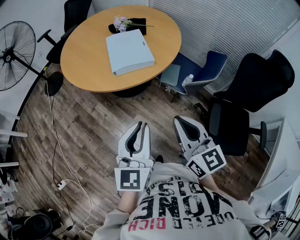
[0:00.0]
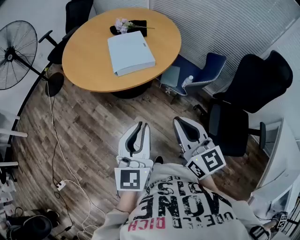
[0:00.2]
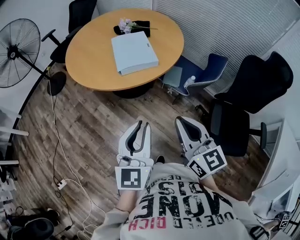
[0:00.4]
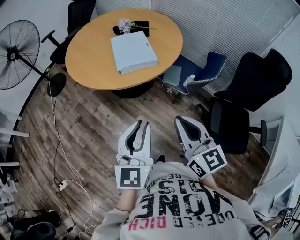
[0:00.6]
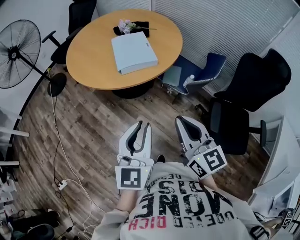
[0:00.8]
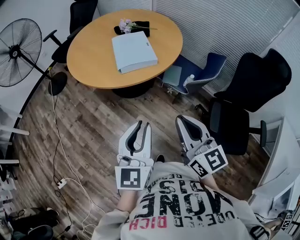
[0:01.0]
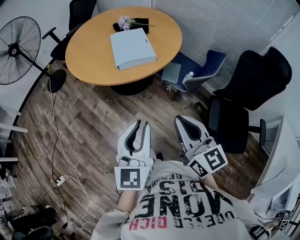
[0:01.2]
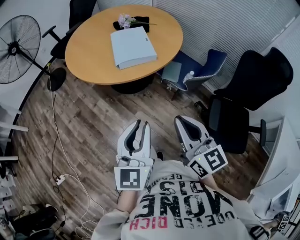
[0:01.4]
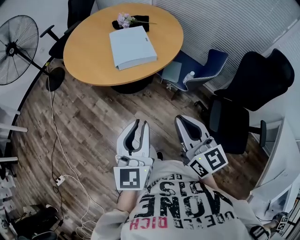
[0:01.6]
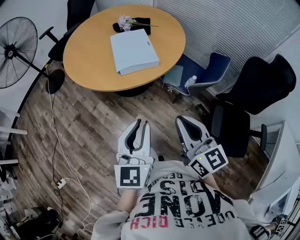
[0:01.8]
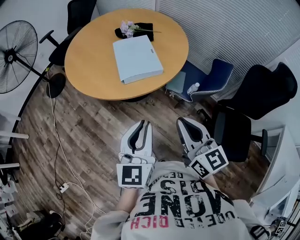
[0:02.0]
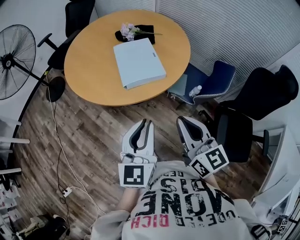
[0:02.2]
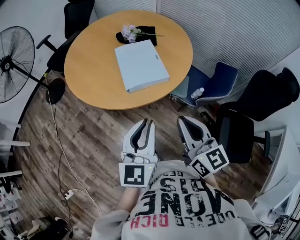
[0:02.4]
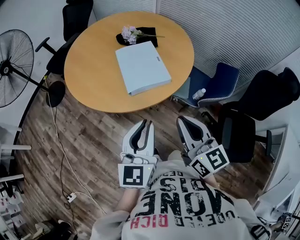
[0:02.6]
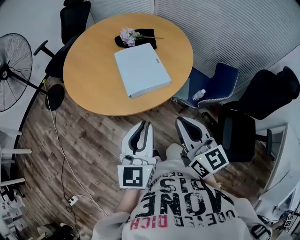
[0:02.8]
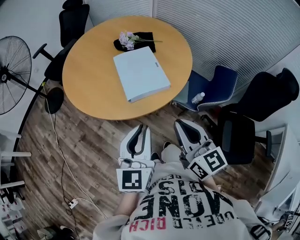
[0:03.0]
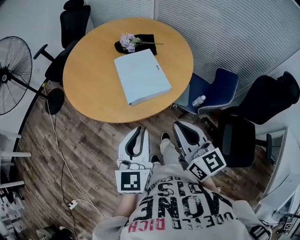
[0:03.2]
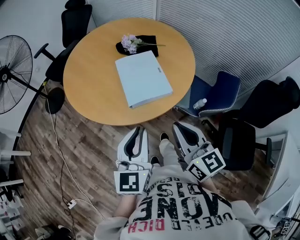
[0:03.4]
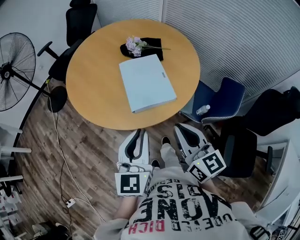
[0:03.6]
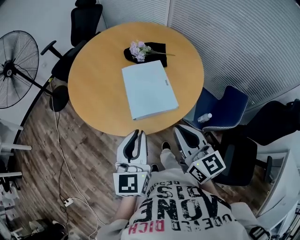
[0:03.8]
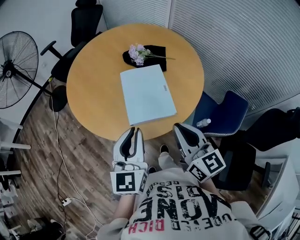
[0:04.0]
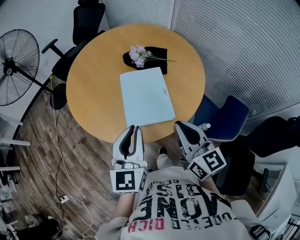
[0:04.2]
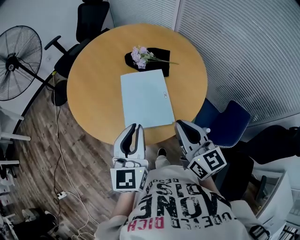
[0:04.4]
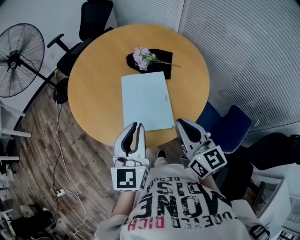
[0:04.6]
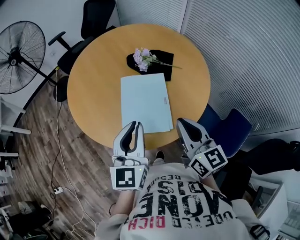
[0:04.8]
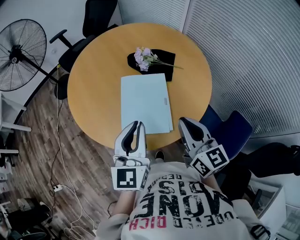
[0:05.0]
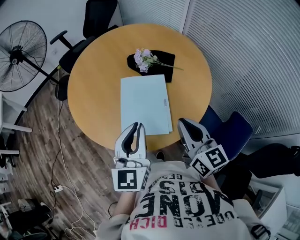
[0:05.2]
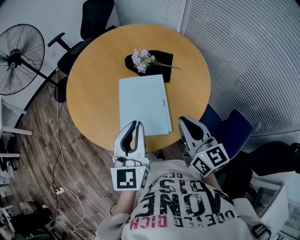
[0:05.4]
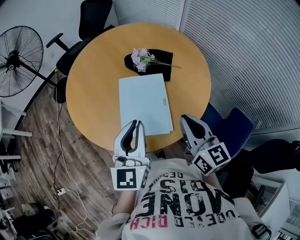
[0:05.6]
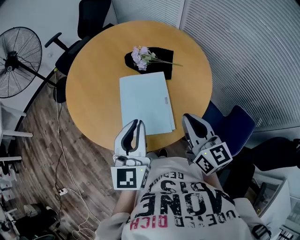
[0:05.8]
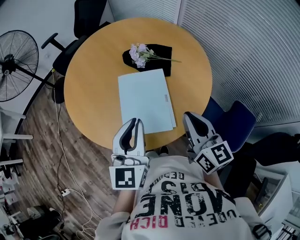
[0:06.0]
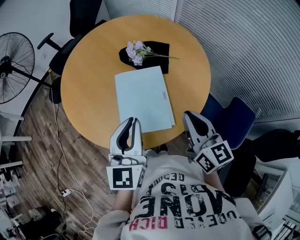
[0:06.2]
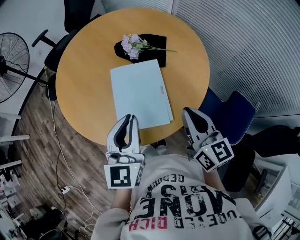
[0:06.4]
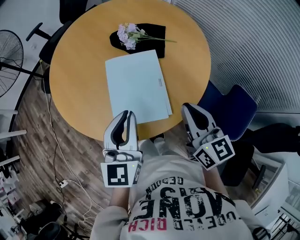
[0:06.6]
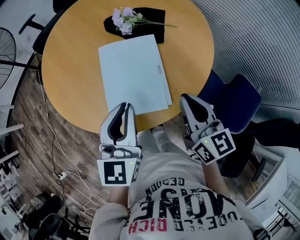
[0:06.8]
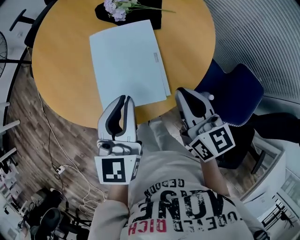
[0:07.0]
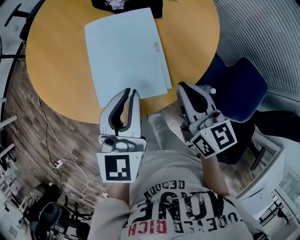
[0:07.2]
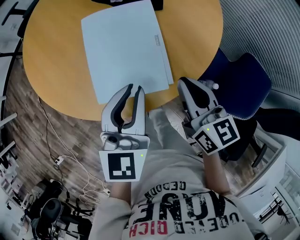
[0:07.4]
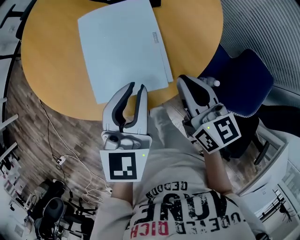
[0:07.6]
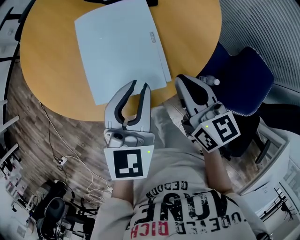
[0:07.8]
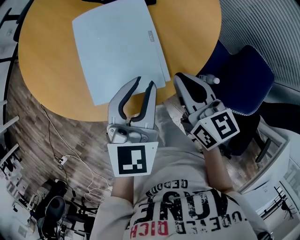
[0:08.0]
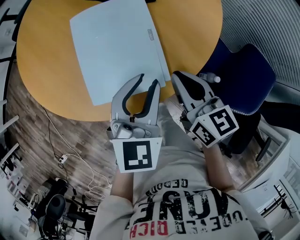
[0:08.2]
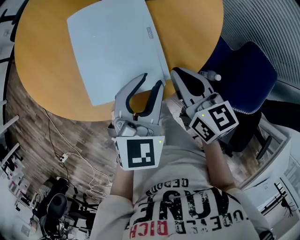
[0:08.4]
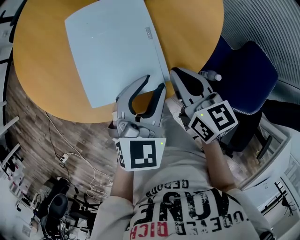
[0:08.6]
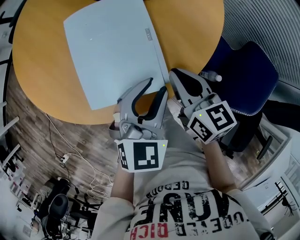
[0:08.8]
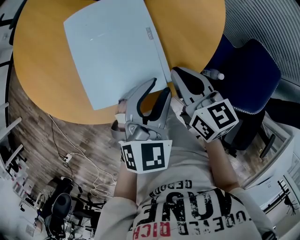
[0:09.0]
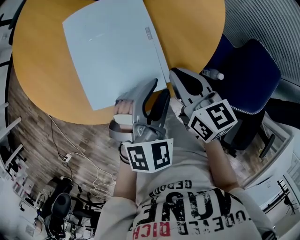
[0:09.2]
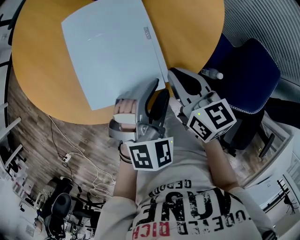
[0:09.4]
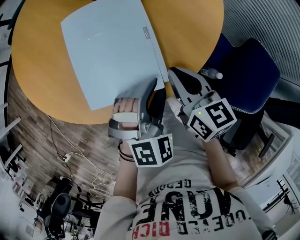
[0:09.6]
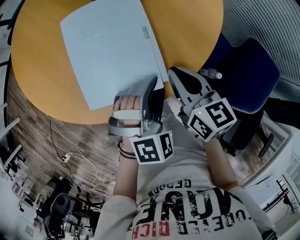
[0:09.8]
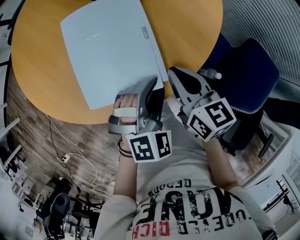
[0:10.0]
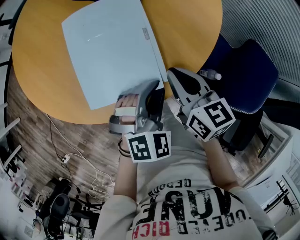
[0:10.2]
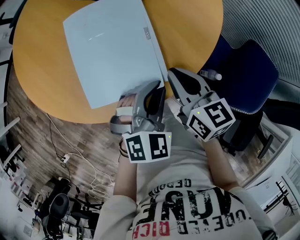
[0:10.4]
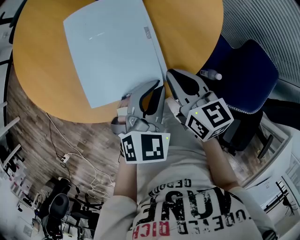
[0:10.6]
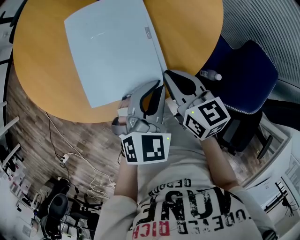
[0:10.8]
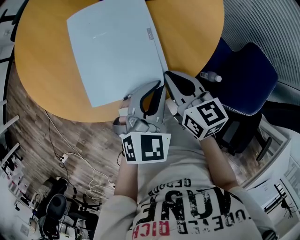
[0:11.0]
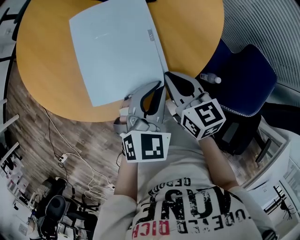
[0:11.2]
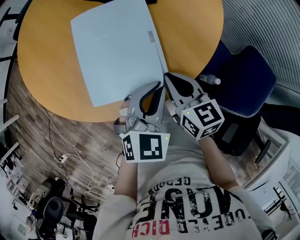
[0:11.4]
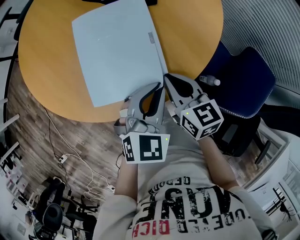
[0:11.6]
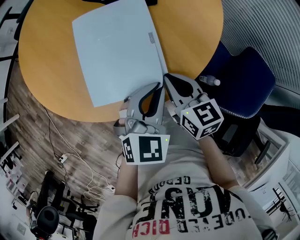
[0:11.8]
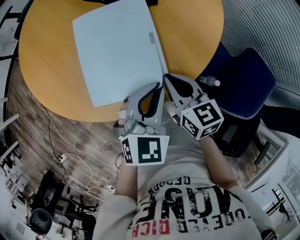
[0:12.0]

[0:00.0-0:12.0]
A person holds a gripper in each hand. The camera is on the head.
0:00.0 to 0:01.6: The grippers move only a little.
0:01.6 to 0:03.0: The left gripper travels forward by approximately 20 cm. Meanwhile the right gripper shifts approximately 20 cm forward and to the left.
0:03.0 to 0:04.4: The grippers both shift forward by some 20 cm.
0:04.4 to 0:06.0: The two grippers go some 5 cm forward.
0:06.0 to 0:07.6: The left gripper goes roughly 15 cm downward and to the right; the right gripper heads downward, covering roughly 15 cm.
0:07.6 to 0:09.0: The left gripper shifts about 10 cm to the right and downward, changes its angle by roughly 30 degrees, and opens up; the right gripper shifts approximately 5 cm downward.
0:09.0 to 0:10.4: The left gripper closes.
0:10.4 to 0:12.0: The grippers move only a little.

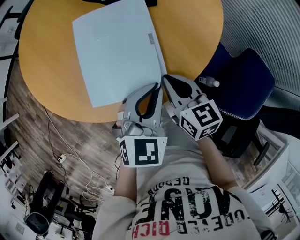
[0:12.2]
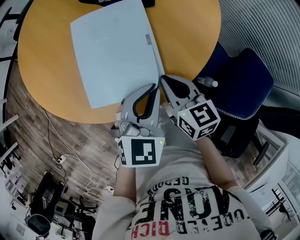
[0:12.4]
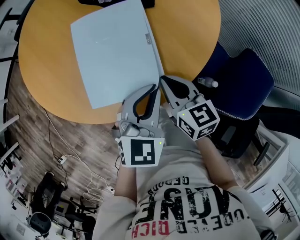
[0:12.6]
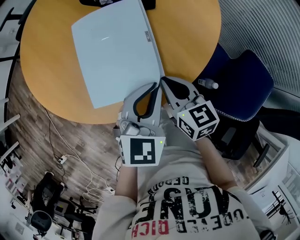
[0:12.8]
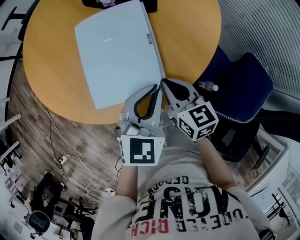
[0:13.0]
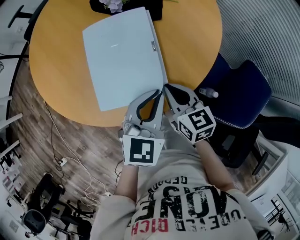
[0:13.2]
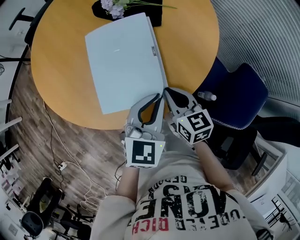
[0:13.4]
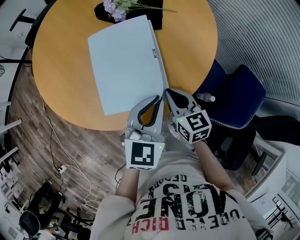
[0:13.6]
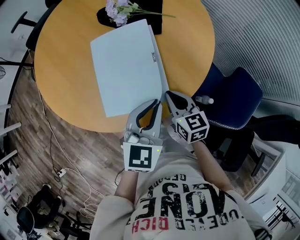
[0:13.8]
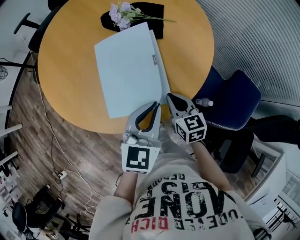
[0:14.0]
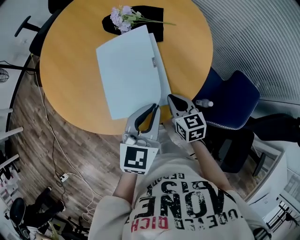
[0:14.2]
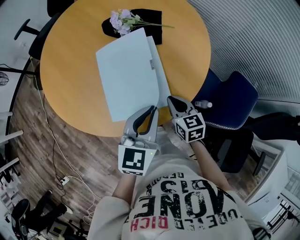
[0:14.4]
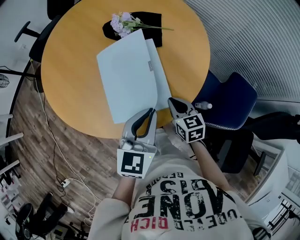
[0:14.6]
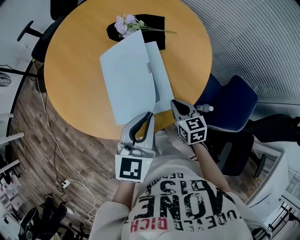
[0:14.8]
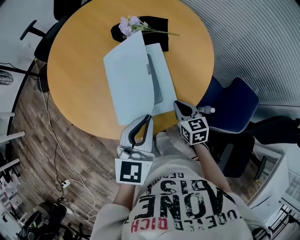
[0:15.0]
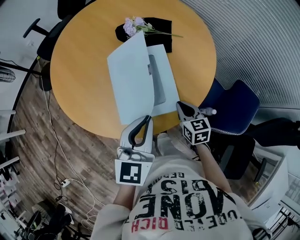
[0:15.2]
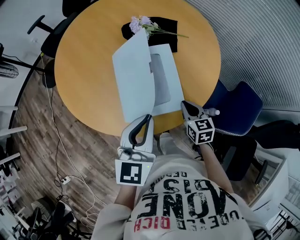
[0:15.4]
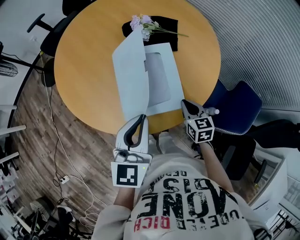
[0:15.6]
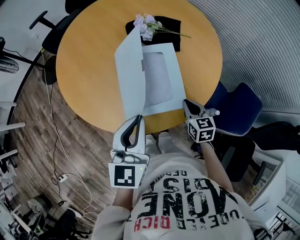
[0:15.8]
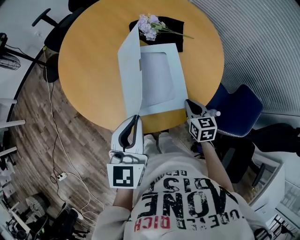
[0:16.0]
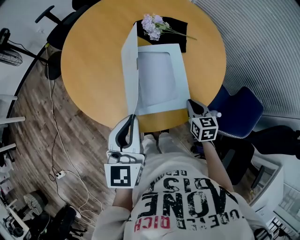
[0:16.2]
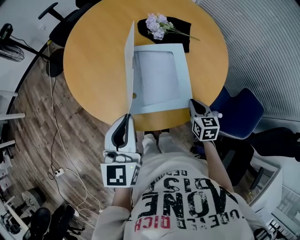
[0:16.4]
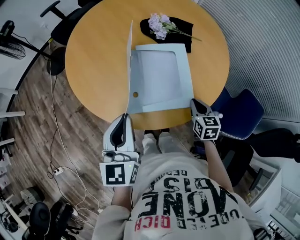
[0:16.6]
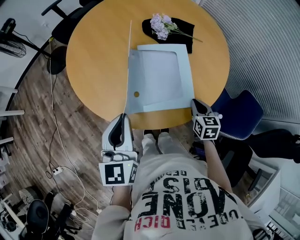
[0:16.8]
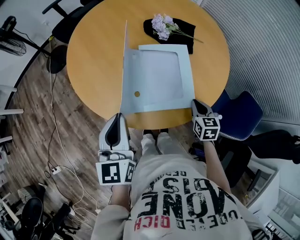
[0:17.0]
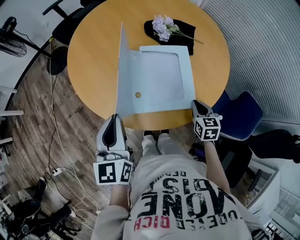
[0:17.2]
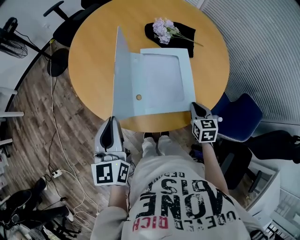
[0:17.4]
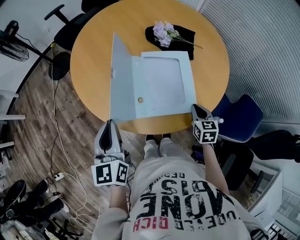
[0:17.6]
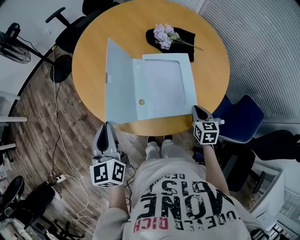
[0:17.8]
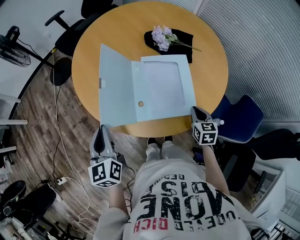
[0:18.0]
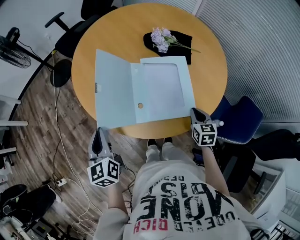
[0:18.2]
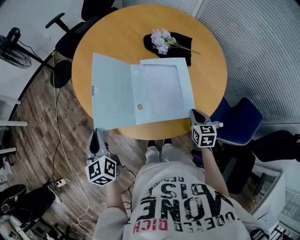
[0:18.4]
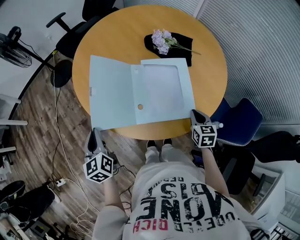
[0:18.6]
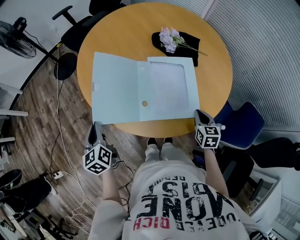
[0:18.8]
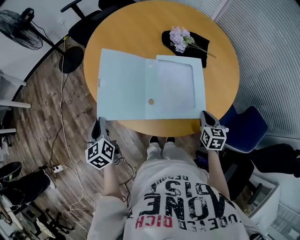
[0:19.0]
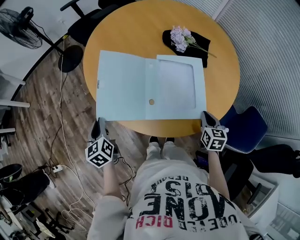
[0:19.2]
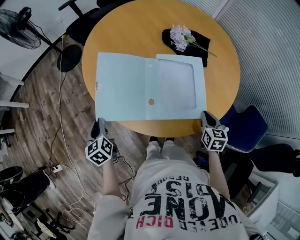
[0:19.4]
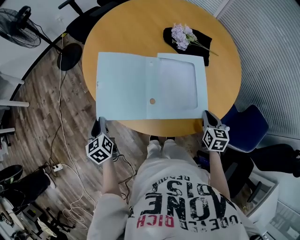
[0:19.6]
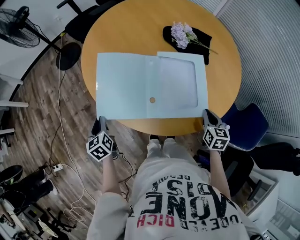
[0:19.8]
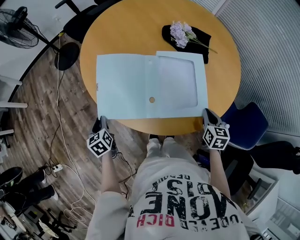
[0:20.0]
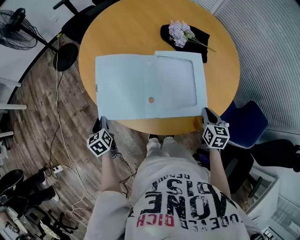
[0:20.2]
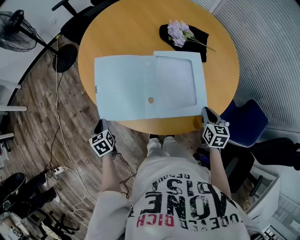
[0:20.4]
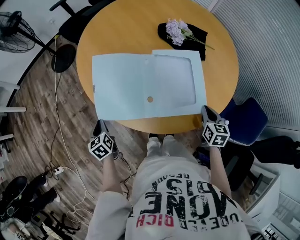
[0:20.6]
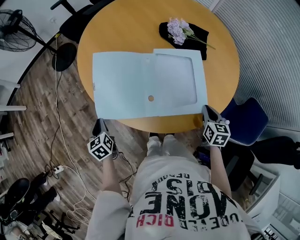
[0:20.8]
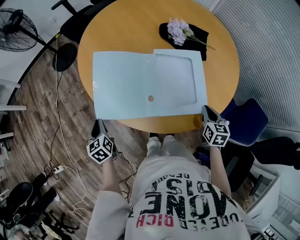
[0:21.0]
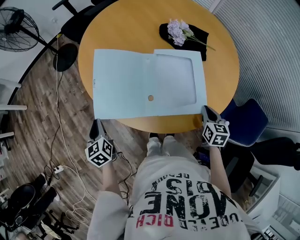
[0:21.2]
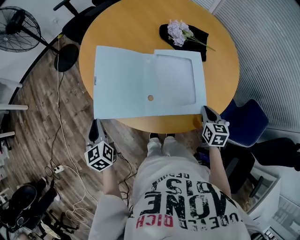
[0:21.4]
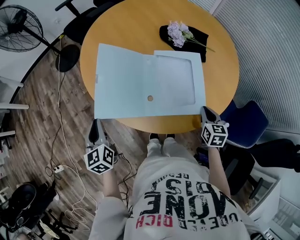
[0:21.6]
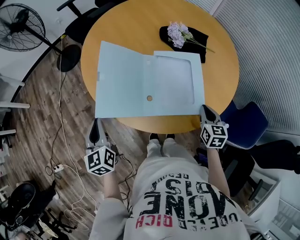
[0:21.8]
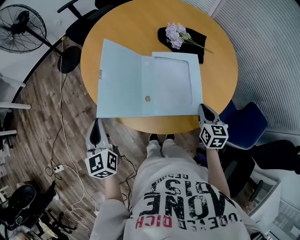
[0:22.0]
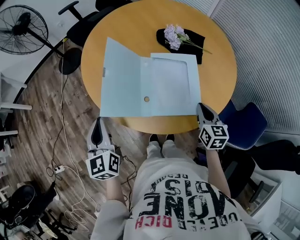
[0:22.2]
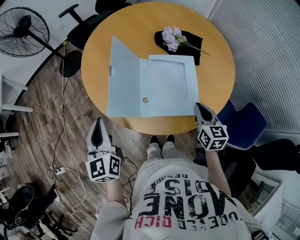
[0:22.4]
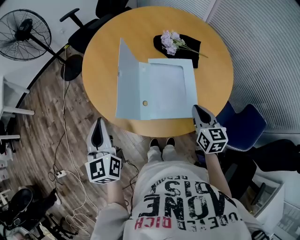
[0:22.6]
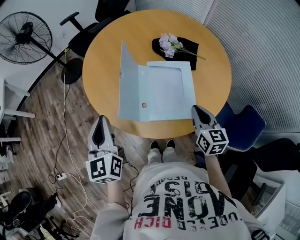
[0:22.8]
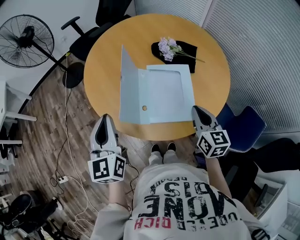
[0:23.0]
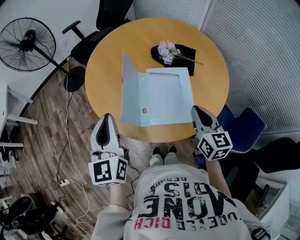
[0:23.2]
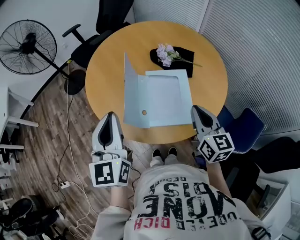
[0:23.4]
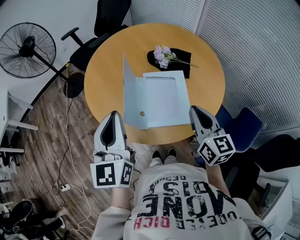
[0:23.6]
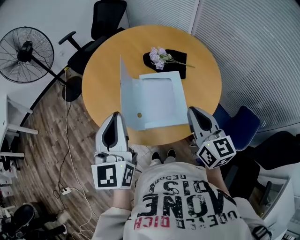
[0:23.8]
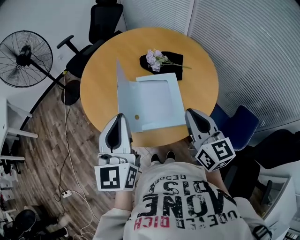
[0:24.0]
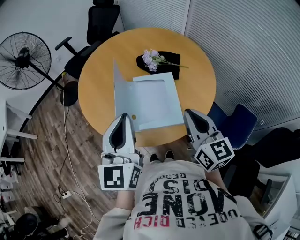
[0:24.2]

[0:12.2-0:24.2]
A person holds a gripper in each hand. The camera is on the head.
0:12.2 to 0:13.8: The left gripper travels upward by about 5 cm.
0:13.8 to 0:15.2: The left gripper goes roughly 10 cm to the left and upward.
0:15.2 to 0:16.6: The left gripper heads to the left, covering some 15 cm, and changes its angle by approximately 20 degrees.
0:16.6 to 0:18.2: The left gripper goes about 15 cm to the left and downward, and swivels roughly 20 degrees.
0:18.2 to 0:19.8: The left gripper moves downward and to the left, roughly 20 cm, and turns by some 20 degrees.
0:19.8 to 0:21.2: The left gripper reaches about 5 cm downward, then returns.
0:21.2 to 0:22.6: The right gripper travels upward by roughly 10 cm. Meanwhile the left gripper heads upward and to the right, covering about 25 cm, and changes its angle by about 30 degrees.
0:22.6 to 0:24.2: The left gripper is displaced to the right and upward by some 20 cm, and changes its angle by approximately 20 degrees, while the right gripper moves upward, some 15 cm.
